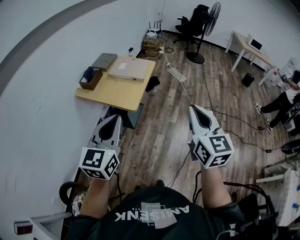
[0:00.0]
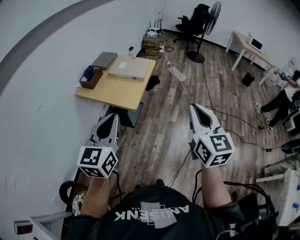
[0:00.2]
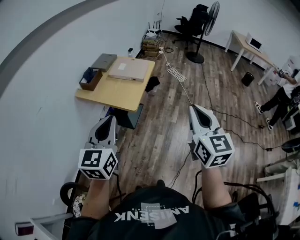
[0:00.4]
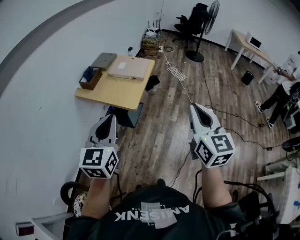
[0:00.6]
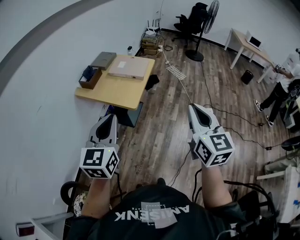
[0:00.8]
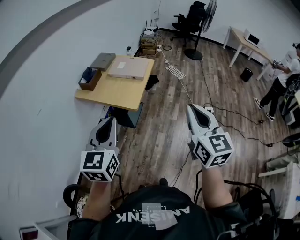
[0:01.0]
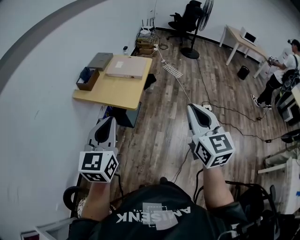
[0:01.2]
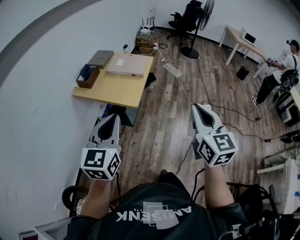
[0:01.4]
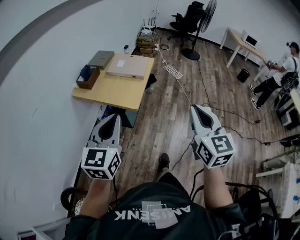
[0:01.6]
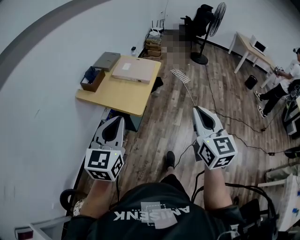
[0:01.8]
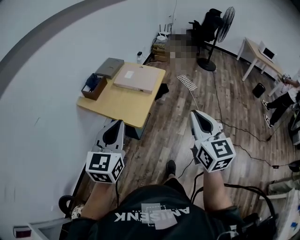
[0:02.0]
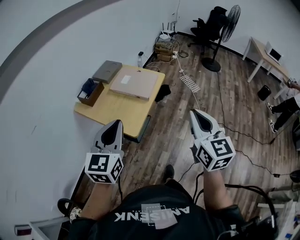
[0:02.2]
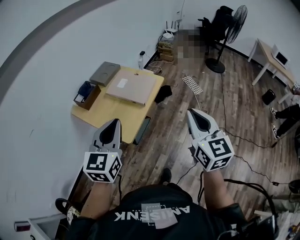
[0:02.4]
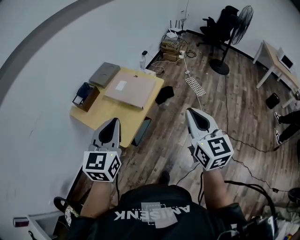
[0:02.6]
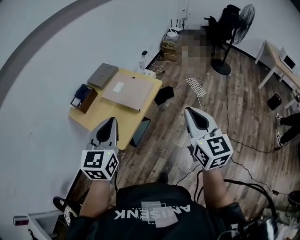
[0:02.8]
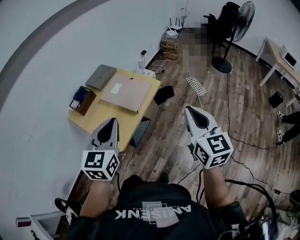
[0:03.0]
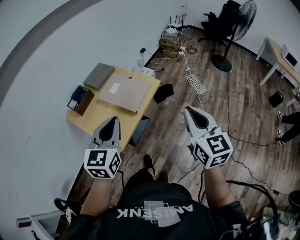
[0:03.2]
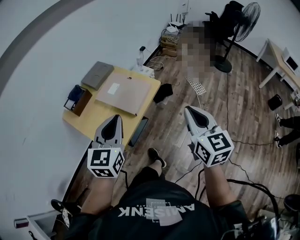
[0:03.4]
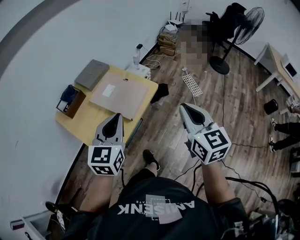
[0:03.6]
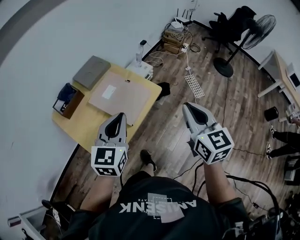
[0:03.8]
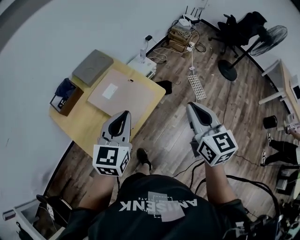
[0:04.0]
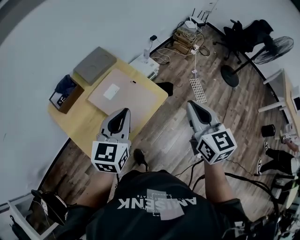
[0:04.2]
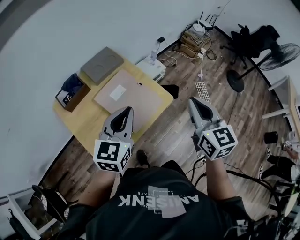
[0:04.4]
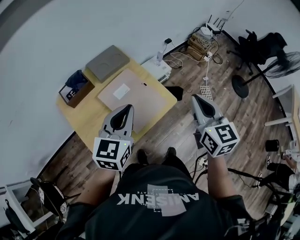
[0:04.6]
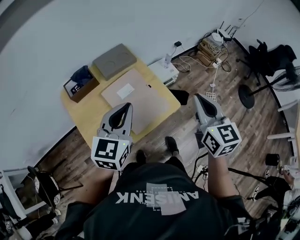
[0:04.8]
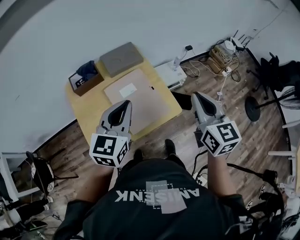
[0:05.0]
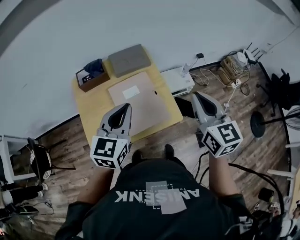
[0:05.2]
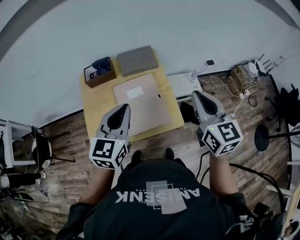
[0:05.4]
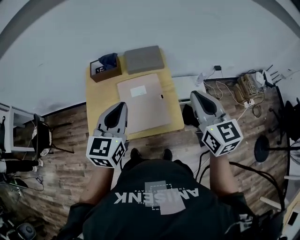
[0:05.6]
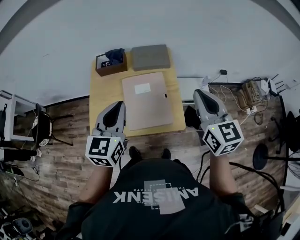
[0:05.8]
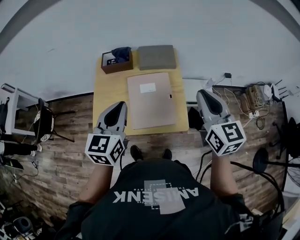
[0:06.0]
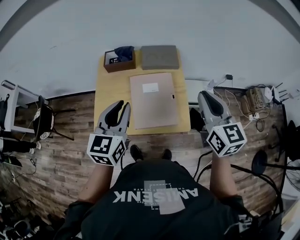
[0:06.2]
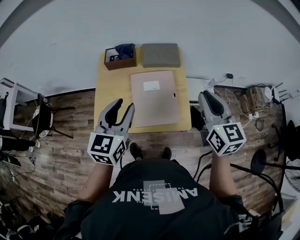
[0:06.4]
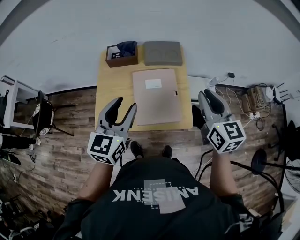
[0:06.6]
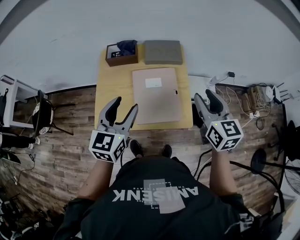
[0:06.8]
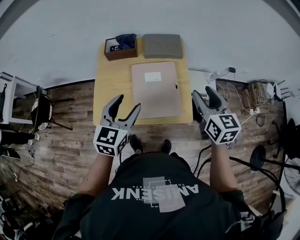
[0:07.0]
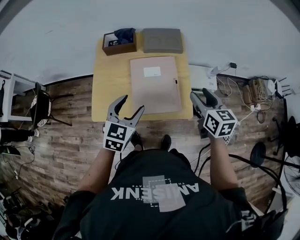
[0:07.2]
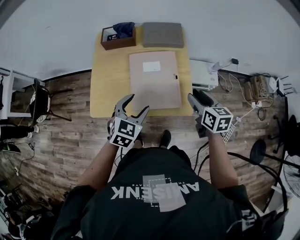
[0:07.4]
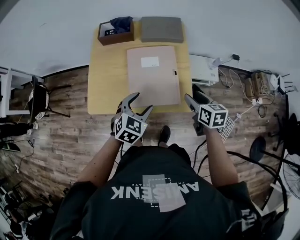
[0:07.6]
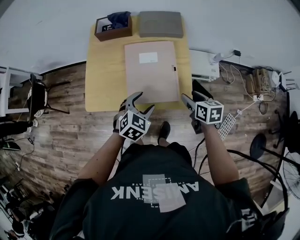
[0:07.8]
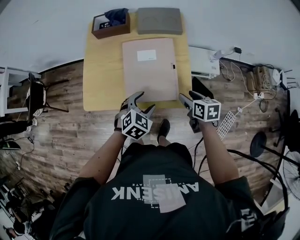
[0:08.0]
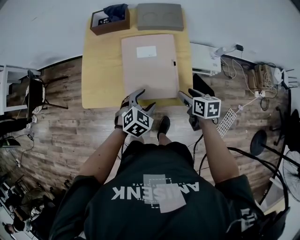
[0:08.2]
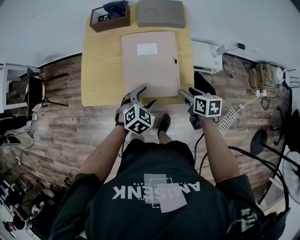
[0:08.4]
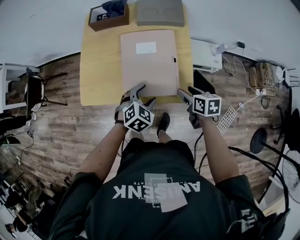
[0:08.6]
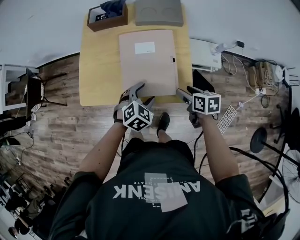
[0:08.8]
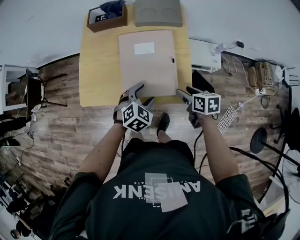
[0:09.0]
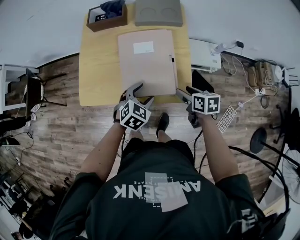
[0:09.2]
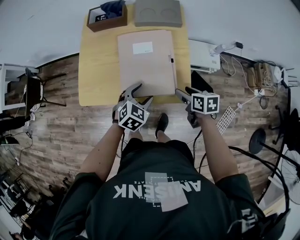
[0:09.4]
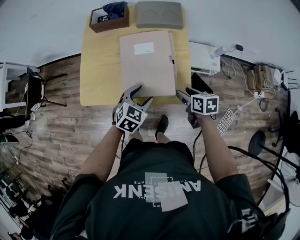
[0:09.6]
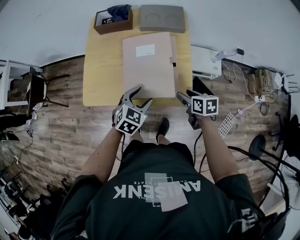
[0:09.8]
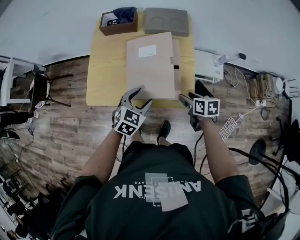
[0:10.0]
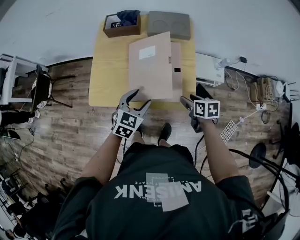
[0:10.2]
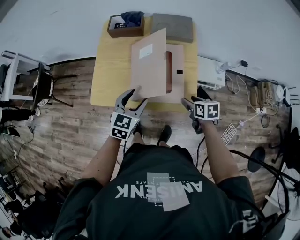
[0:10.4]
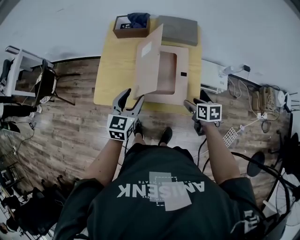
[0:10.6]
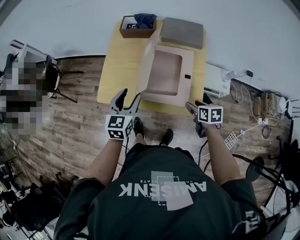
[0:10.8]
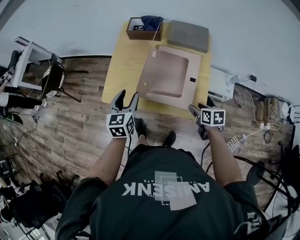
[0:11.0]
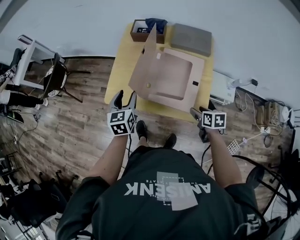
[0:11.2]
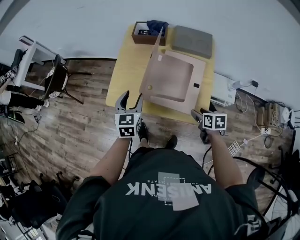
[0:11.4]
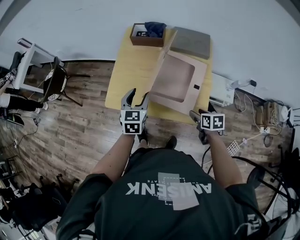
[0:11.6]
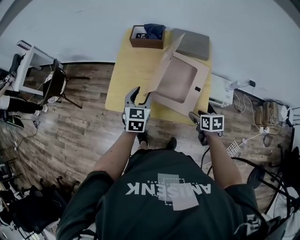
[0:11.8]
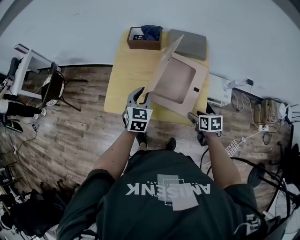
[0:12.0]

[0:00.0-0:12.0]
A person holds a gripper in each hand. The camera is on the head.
0:00.0 to 0:01.6: The right gripper ends up about 5 cm from where it was. The left gripper moves to the left, roughly 5 cm.
0:01.6 to 0:03.0: The two grippers go approximately 40 cm forward and to the right.
0:03.0 to 0:04.4: Both grippers move forward, roughly 30 cm.
0:04.4 to 0:06.0: The right gripper moves some 15 cm, and turns by roughly 40 degrees, while the left gripper changes its angle by approximately 50 degrees.
0:06.0 to 0:07.6: The two grippers go roughly 25 cm downward. The right gripper turns by some 40 degrees, and opens. Meanwhile the left gripper changes its angle by approximately 40 degrees, and opens up.
0:07.6 to 0:09.0: Both grippers move downward, approximately 10 cm.
0:09.0 to 0:10.4: The left gripper heads upward and to the left, covering roughly 10 cm, and swivels roughly 30 degrees.
0:10.4 to 0:12.0: The left gripper goes roughly 10 cm forward, and goes to the left and returns, some 10 cm each way.

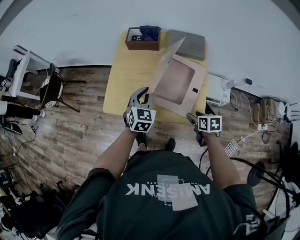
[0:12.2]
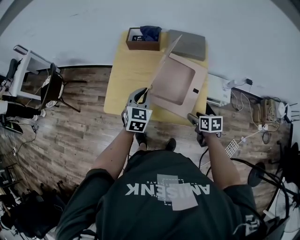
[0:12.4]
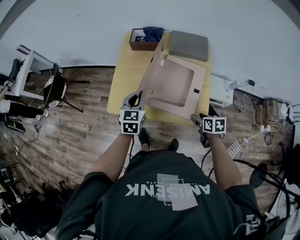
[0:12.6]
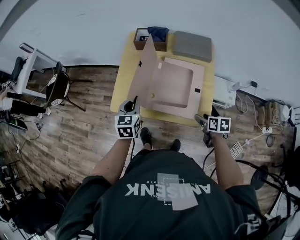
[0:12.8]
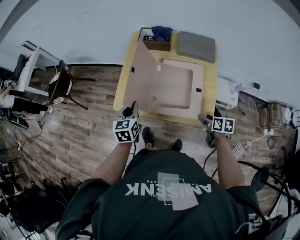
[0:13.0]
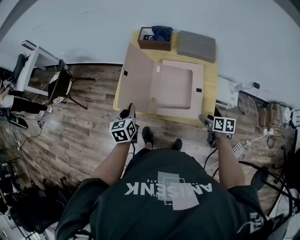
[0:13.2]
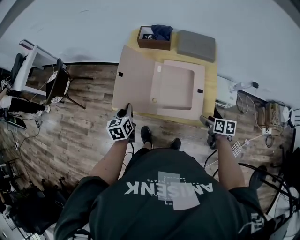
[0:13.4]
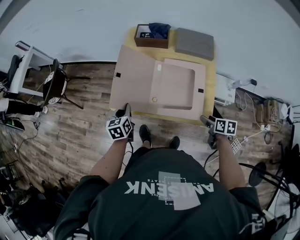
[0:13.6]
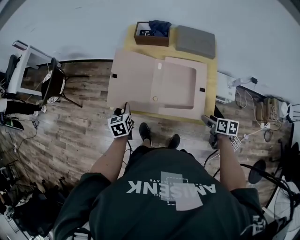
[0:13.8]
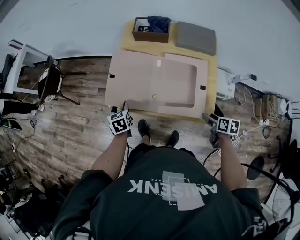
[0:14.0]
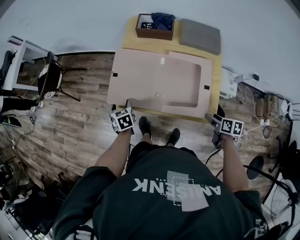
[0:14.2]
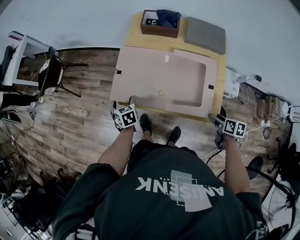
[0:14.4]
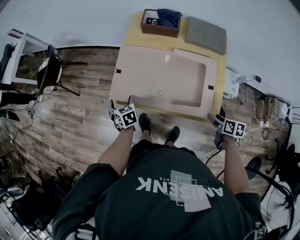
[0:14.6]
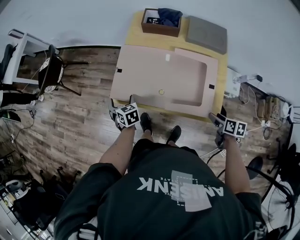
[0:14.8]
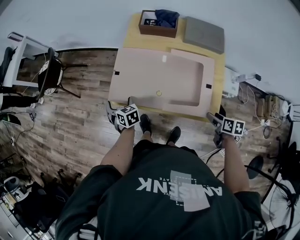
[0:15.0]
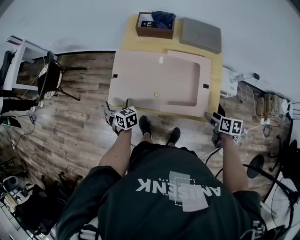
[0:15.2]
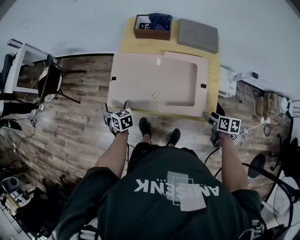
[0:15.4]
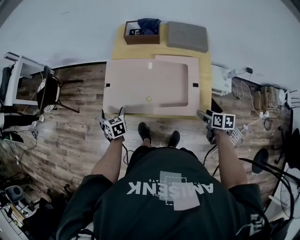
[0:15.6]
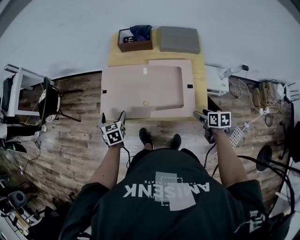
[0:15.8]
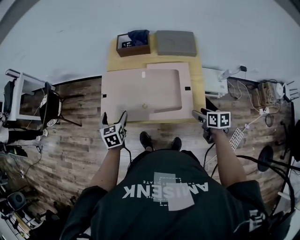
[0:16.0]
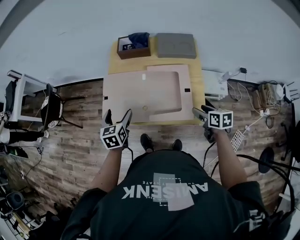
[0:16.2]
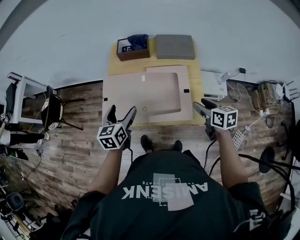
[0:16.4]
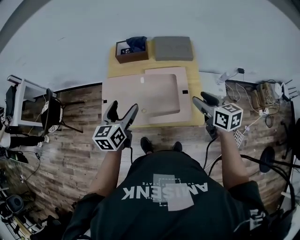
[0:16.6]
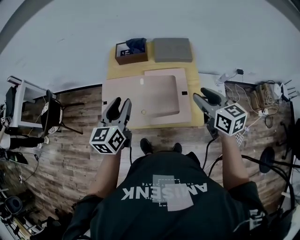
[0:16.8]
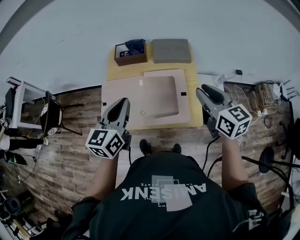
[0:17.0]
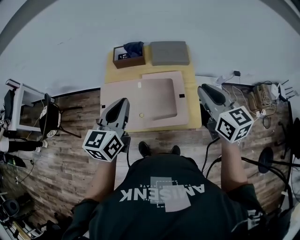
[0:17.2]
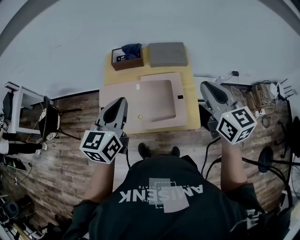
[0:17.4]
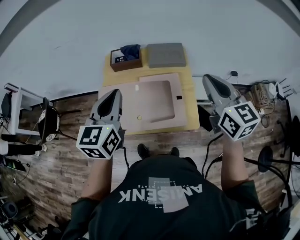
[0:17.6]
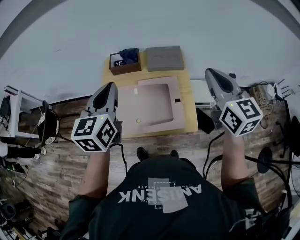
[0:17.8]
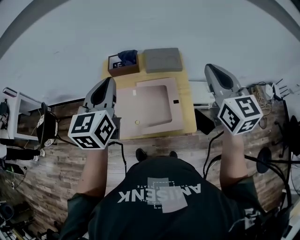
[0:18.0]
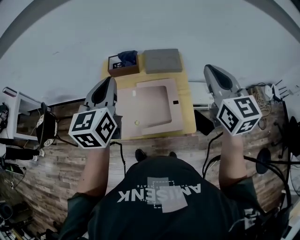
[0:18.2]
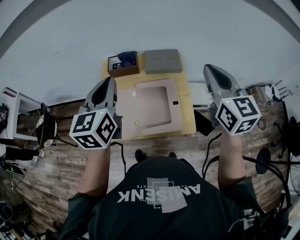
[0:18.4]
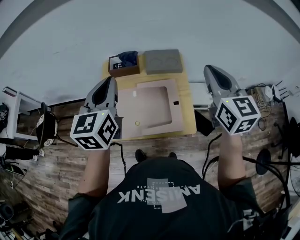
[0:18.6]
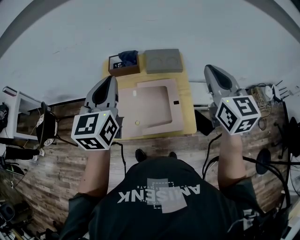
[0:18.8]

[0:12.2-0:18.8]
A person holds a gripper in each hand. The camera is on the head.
0:12.2 to 0:13.8: The left gripper travels to the left and downward by some 20 cm, and swivels roughly 40 degrees.
0:13.8 to 0:15.4: The left gripper moves to the left, some 5 cm, swivels about 20 degrees, and opens up.
0:15.4 to 0:17.2: Both grippers move upward, some 35 cm. The right gripper points its fingers approximately 40 degrees further upward, and closes its fingers, while the left gripper tilts its fingers about 40 degrees upward, and closes.
0:17.2 to 0:18.8: The right gripper is displaced upward by roughly 10 cm, while the left gripper heads upward and forward, covering some 10 cm.

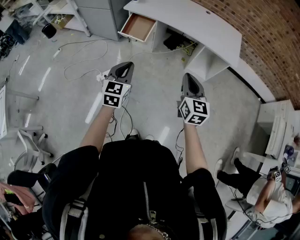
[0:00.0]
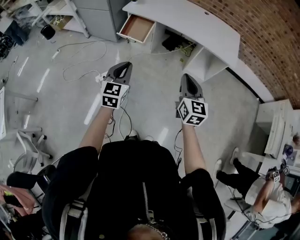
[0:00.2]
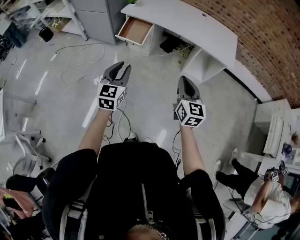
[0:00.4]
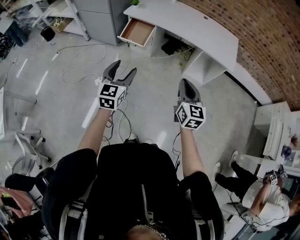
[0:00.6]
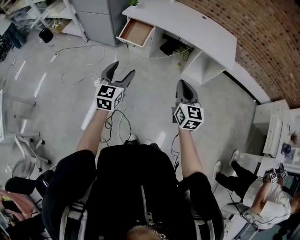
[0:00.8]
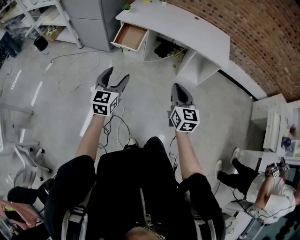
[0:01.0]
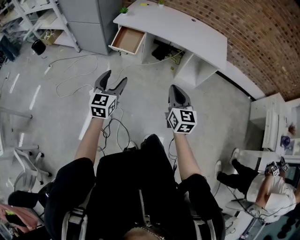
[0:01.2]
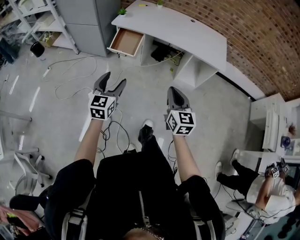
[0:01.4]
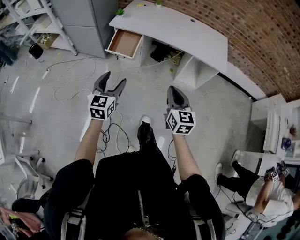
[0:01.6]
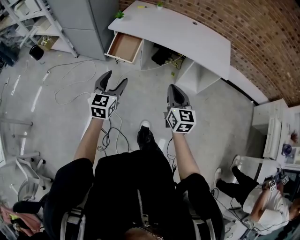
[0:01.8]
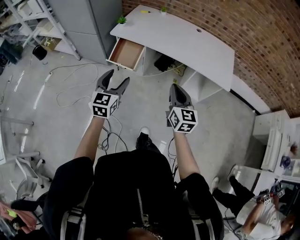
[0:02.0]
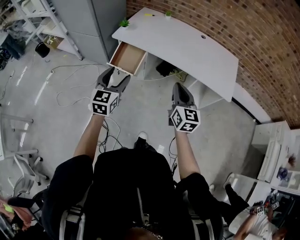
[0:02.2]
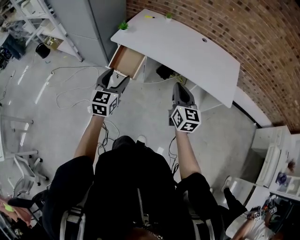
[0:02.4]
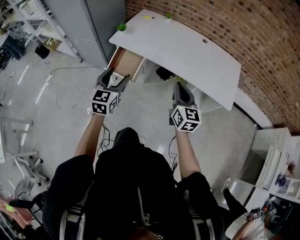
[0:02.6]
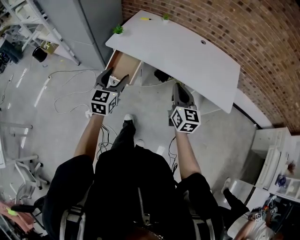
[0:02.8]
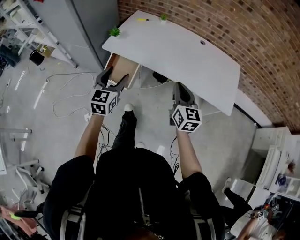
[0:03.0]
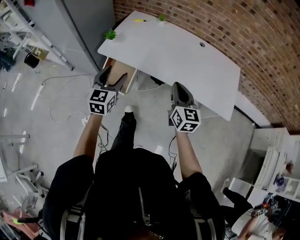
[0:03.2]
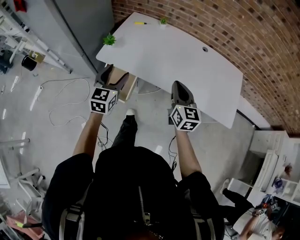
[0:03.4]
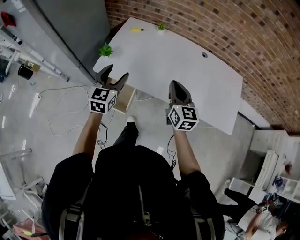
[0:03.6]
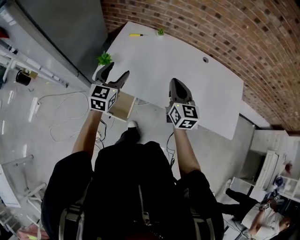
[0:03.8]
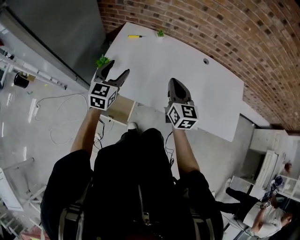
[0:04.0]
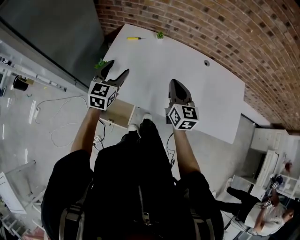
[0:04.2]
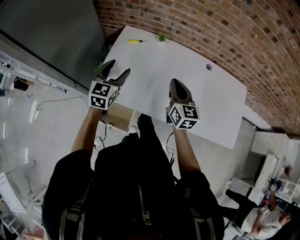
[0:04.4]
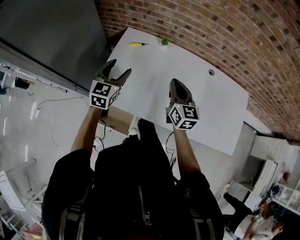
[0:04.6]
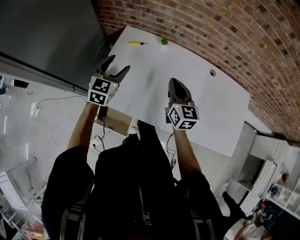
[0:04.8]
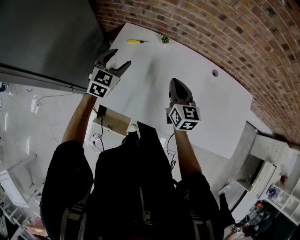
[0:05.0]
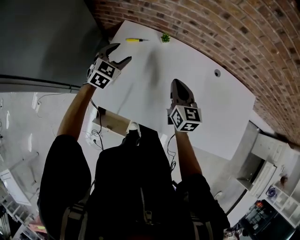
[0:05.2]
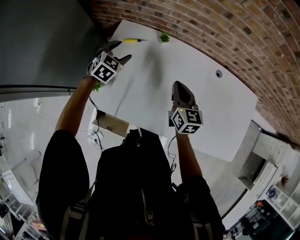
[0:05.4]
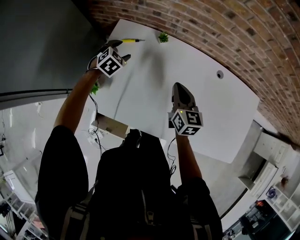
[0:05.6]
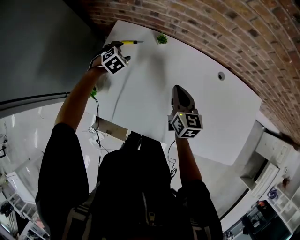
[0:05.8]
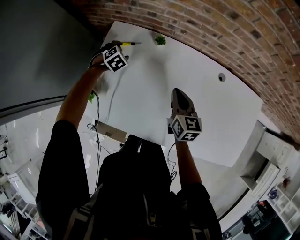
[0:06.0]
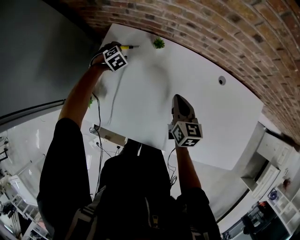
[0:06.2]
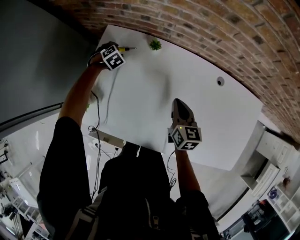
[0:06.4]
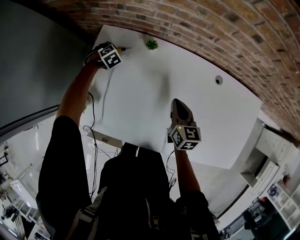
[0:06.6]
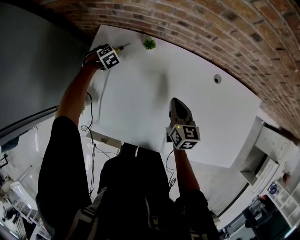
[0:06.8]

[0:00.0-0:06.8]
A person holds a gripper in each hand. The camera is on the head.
0:00.0 to 0:01.4: The two grippers go about 5 cm to the left. The left gripper opens up.
0:01.4 to 0:02.8: Both grippers travel together forward, some 35 cm.
0:02.8 to 0:04.0: The grippers both shift forward by approximately 40 cm.
0:04.0 to 0:05.4: The two grippers go about 25 cm forward and downward. The left gripper changes its angle by roughly 30 degrees.
0:05.4 to 0:06.8: The right gripper travels downward and to the right by approximately 10 cm. Meanwhile the left gripper is displaced downward and forward by approximately 25 cm, angles its fingers downward, by about 30 degrees, and closes its fingers.
